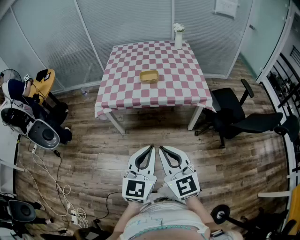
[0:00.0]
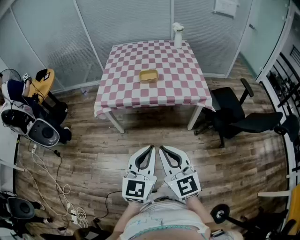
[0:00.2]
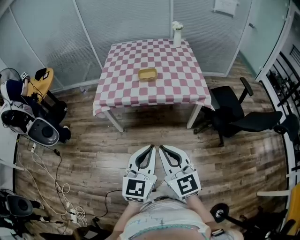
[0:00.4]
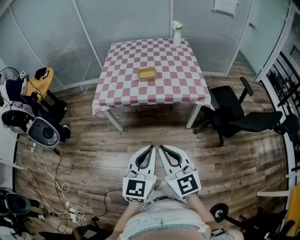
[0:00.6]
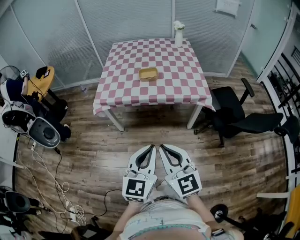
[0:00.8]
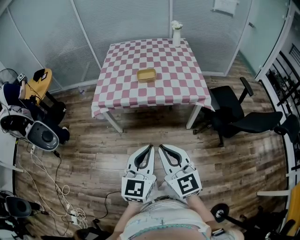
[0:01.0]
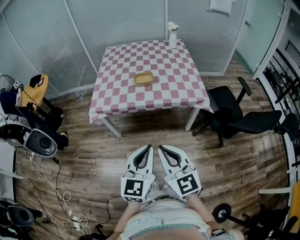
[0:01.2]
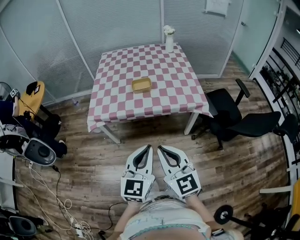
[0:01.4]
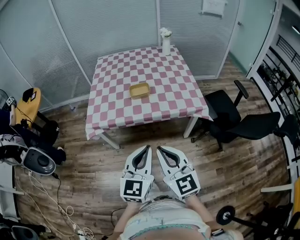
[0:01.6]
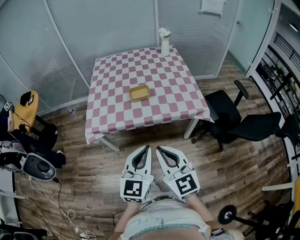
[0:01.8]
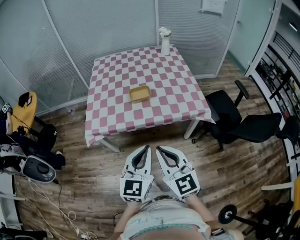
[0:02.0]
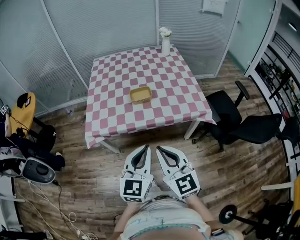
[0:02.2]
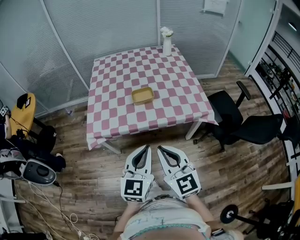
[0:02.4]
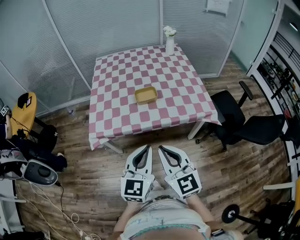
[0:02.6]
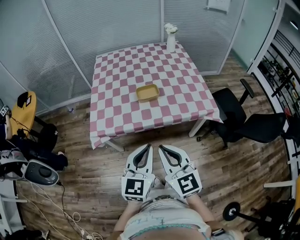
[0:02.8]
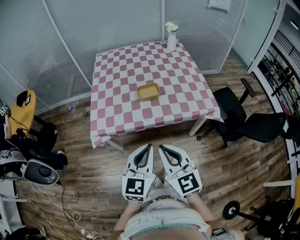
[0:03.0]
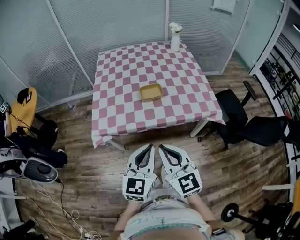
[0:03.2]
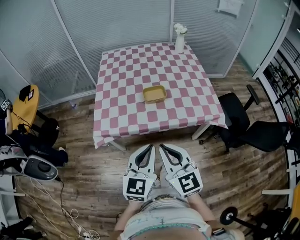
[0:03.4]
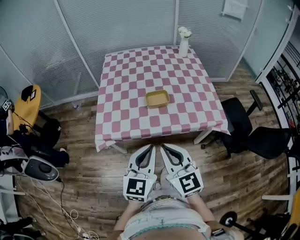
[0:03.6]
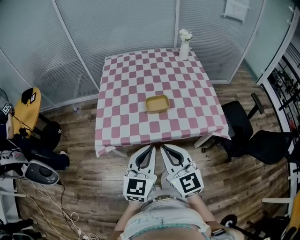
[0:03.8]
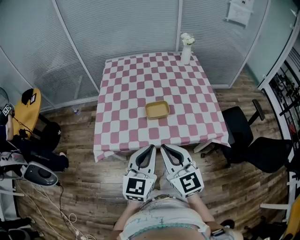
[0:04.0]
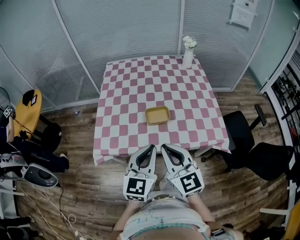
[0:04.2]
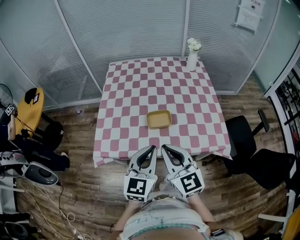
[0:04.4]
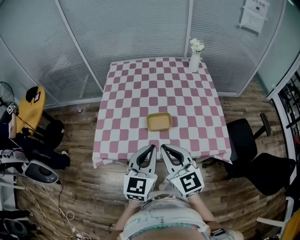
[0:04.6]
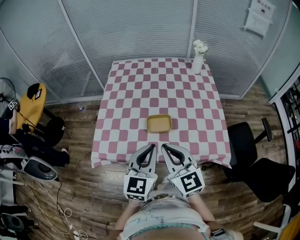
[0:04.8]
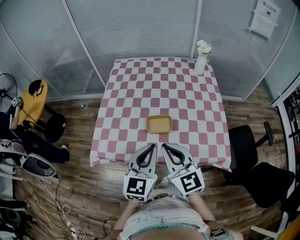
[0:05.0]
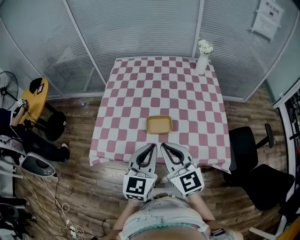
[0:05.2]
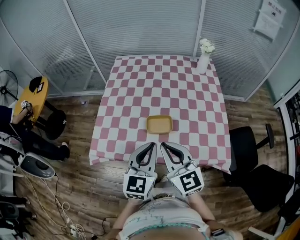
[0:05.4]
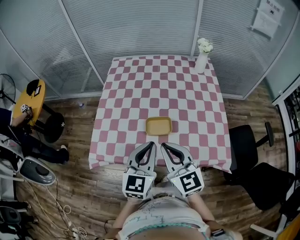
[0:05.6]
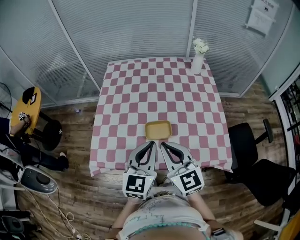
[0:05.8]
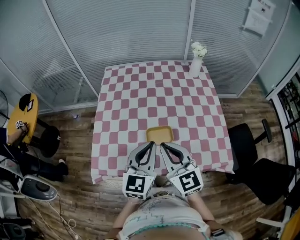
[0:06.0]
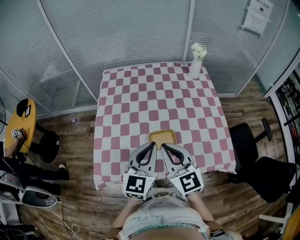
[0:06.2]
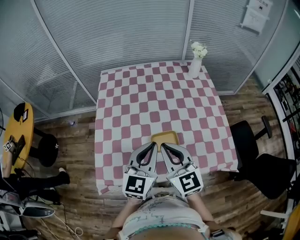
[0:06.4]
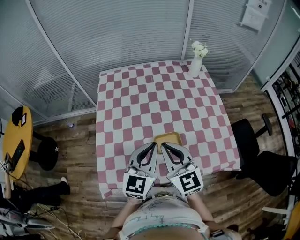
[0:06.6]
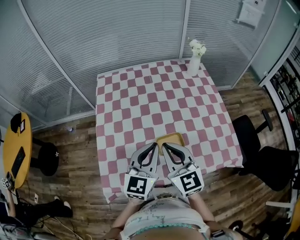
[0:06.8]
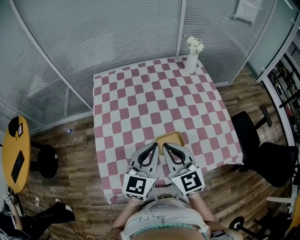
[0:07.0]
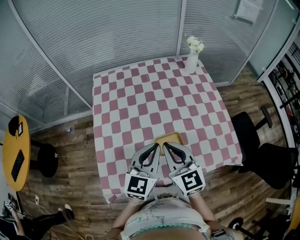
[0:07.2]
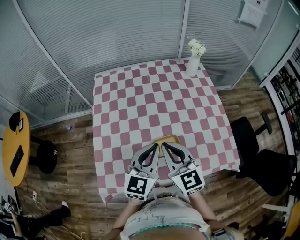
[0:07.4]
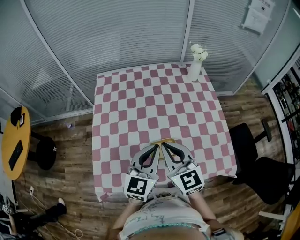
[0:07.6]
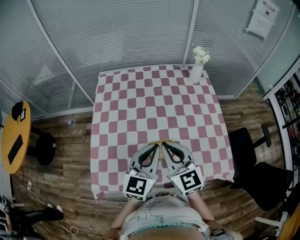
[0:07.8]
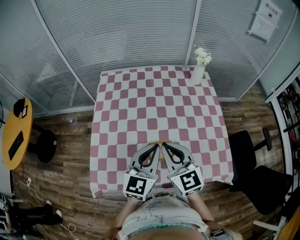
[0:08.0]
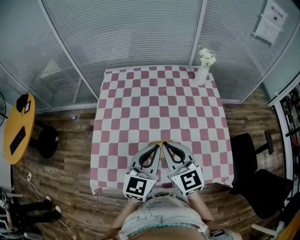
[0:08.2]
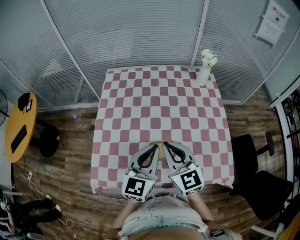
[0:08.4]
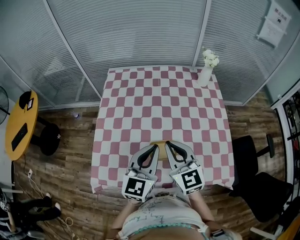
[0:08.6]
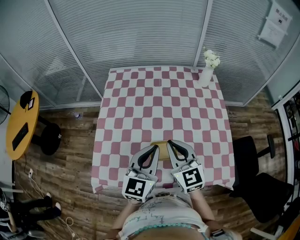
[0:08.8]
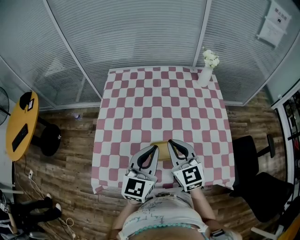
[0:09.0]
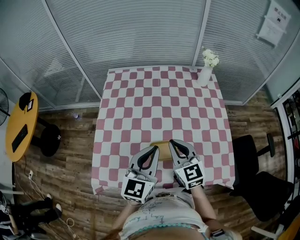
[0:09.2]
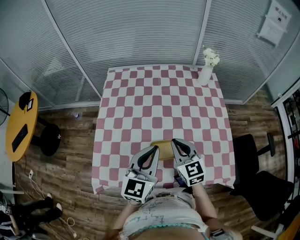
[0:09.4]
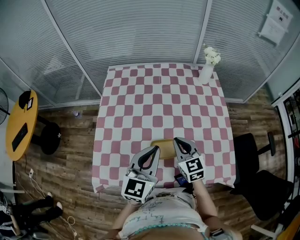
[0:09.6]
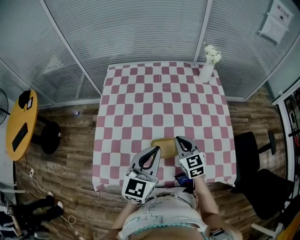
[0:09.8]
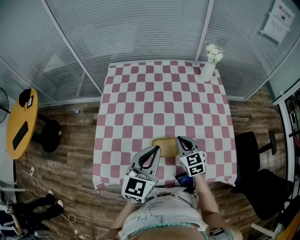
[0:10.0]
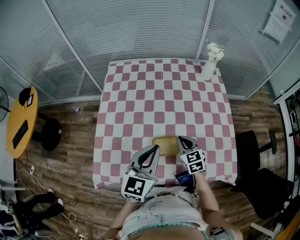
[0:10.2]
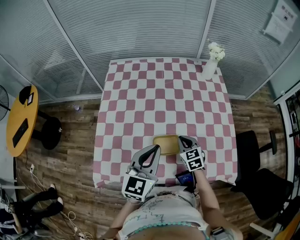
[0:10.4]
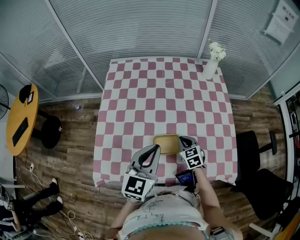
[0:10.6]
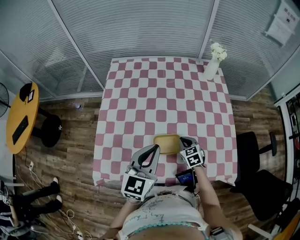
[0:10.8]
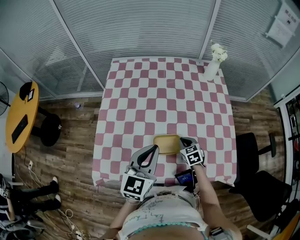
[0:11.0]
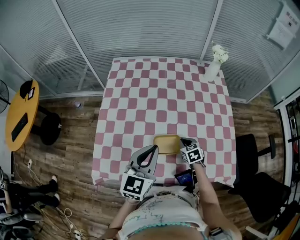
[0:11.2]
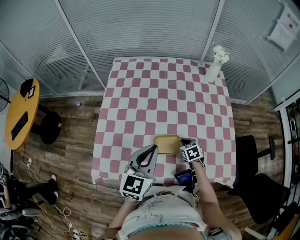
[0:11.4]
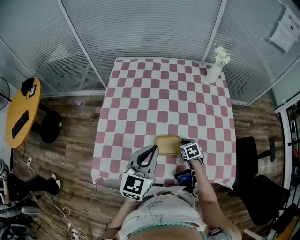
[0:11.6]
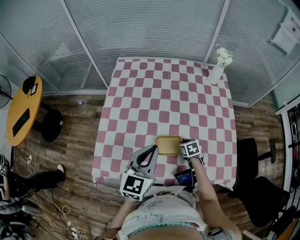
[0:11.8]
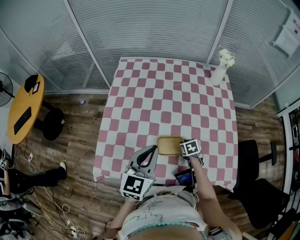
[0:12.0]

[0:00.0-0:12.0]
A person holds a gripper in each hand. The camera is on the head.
0.0 to 1.6 s: The two grippers go roughly 15 cm forward.
1.6 to 3.0 s: Both grippers move forward and to the left, approximately 15 cm.
3.0 to 4.4 s: The two grippers go roughly 20 cm forward.
4.4 to 6.0 s: Both grippers travel together forward, about 15 cm.
6.0 to 7.6 s: Both grippers travel together forward, approximately 10 cm.
7.6 to 9.0 s: The right gripper shifts by some 5 cm.
9.0 to 10.4 s: The right gripper goes about 20 cm downward, and swivels about 20 degrees.
10.4 to 12.0 s: The right gripper goes about 10 cm downward, and turns by some 30 degrees.

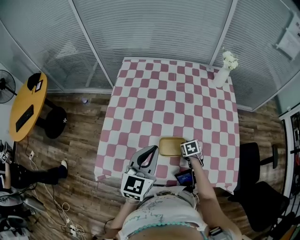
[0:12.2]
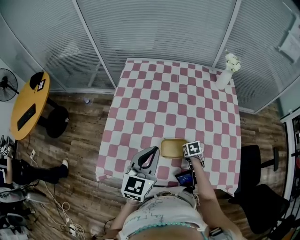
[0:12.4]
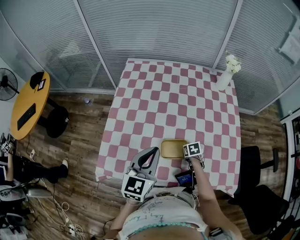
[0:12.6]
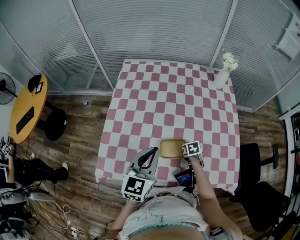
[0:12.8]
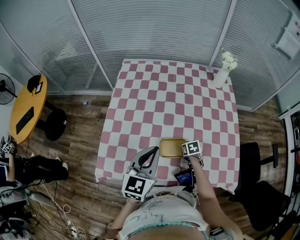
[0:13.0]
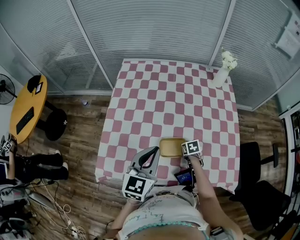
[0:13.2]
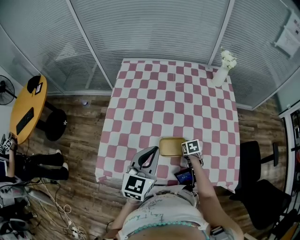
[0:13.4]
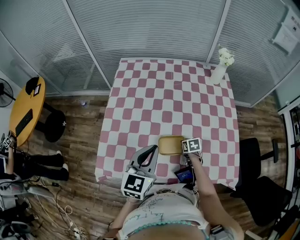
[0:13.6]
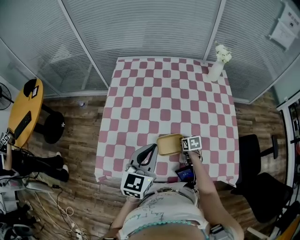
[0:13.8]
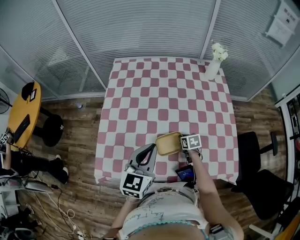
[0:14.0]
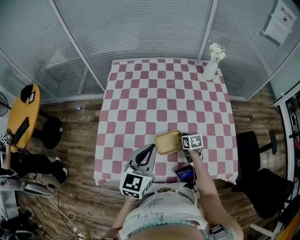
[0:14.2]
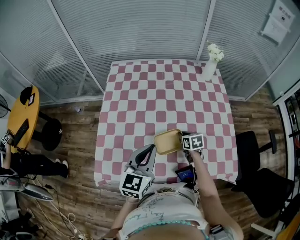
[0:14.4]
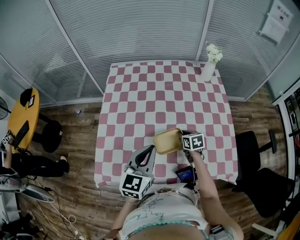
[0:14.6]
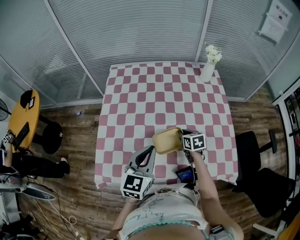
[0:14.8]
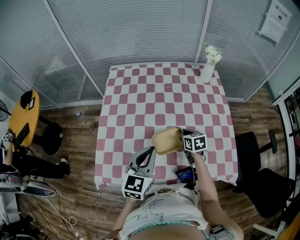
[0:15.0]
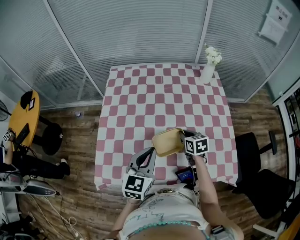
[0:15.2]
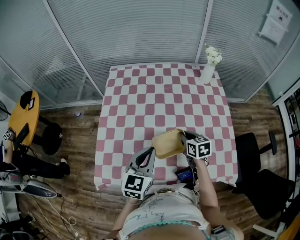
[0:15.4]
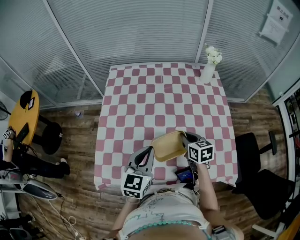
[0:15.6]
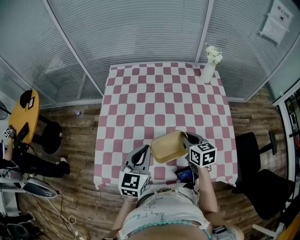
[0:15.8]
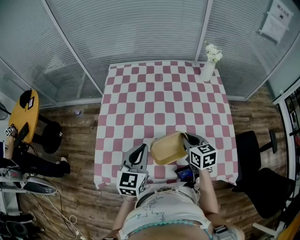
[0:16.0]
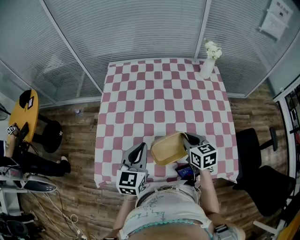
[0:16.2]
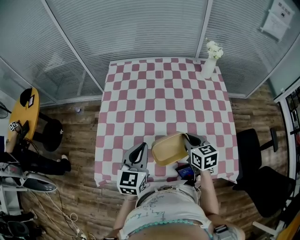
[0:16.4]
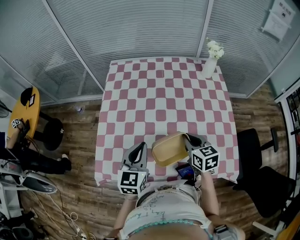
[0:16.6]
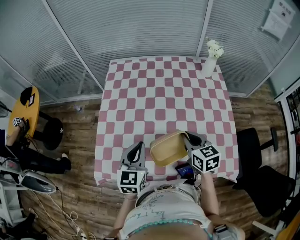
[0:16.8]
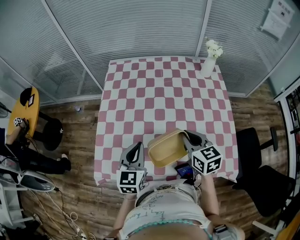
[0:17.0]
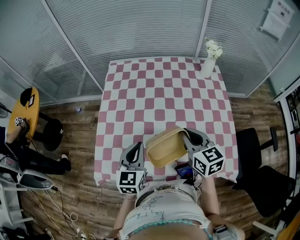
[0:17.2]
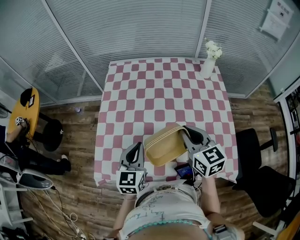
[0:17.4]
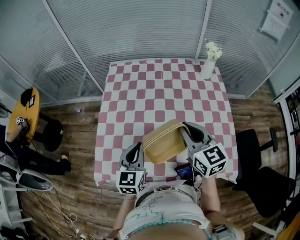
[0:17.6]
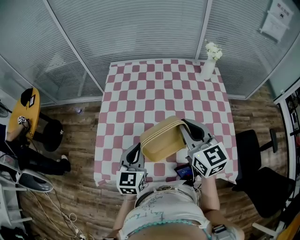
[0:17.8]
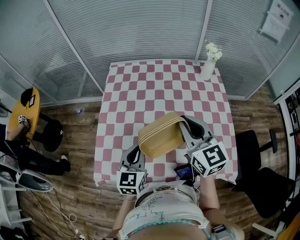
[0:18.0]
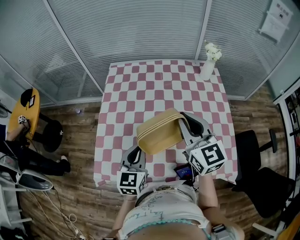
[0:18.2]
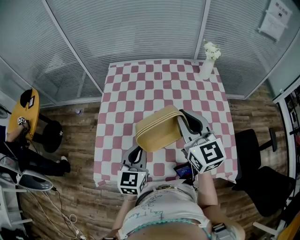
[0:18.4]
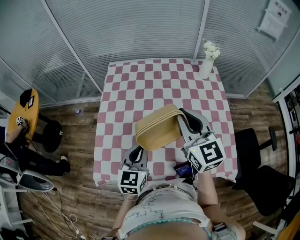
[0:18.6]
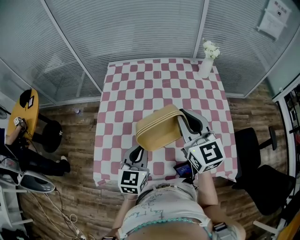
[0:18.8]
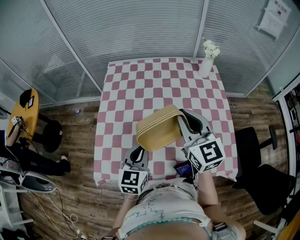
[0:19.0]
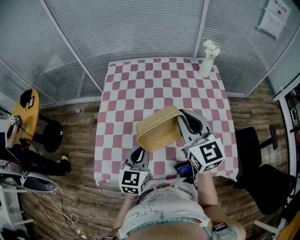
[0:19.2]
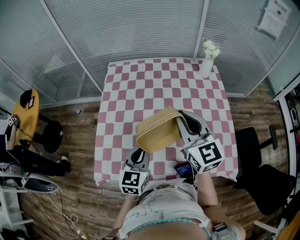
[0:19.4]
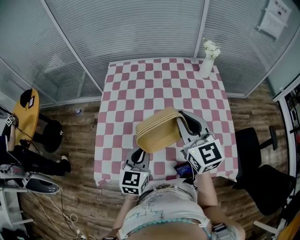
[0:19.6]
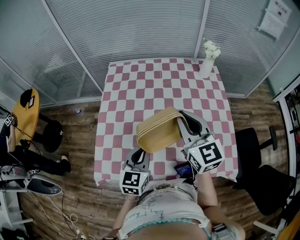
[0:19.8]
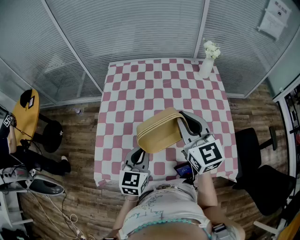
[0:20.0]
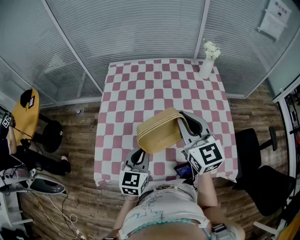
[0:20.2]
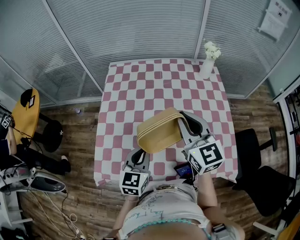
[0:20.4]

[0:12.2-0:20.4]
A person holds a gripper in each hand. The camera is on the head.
12.2 to 13.8 s: The grippers stay close to where they were, moving slightly.
13.8 to 15.4 s: The right gripper is displaced upward by some 15 cm, and turns by approximately 20 degrees.
15.4 to 17.2 s: The right gripper shifts approximately 15 cm upward.
17.2 to 18.8 s: The right gripper goes about 10 cm upward, and rotates about 20 degrees.
18.8 to 20.4 s: Neither gripper changes place.

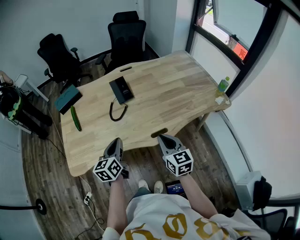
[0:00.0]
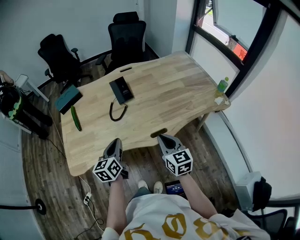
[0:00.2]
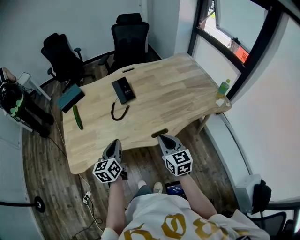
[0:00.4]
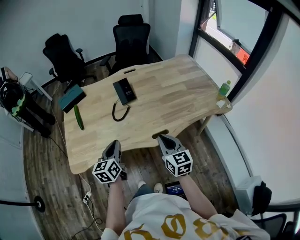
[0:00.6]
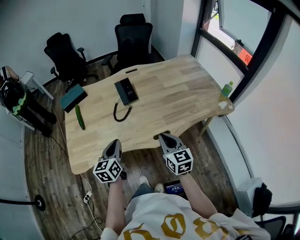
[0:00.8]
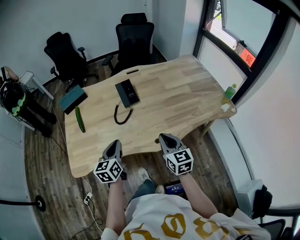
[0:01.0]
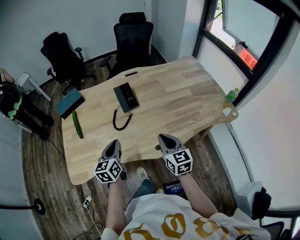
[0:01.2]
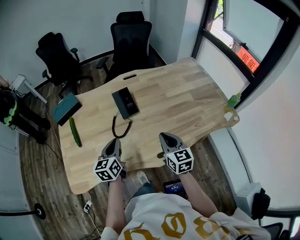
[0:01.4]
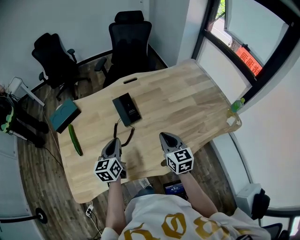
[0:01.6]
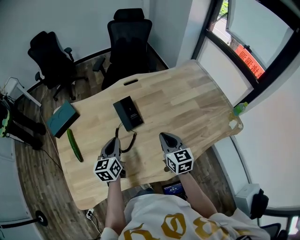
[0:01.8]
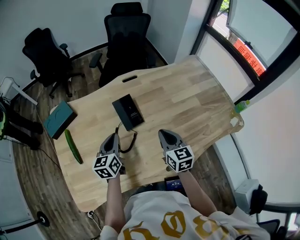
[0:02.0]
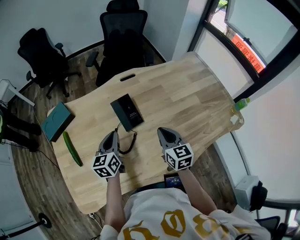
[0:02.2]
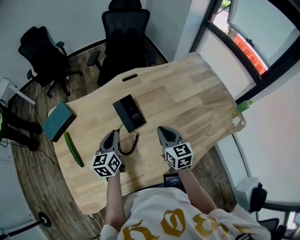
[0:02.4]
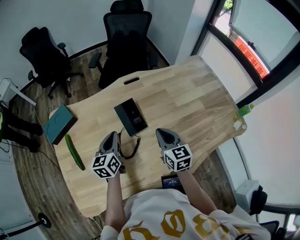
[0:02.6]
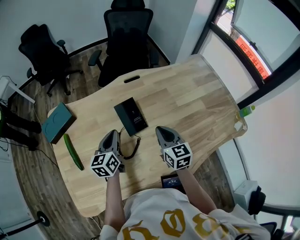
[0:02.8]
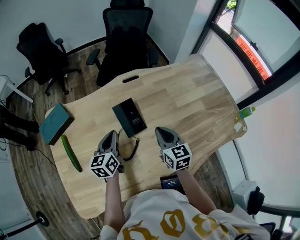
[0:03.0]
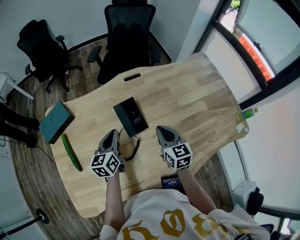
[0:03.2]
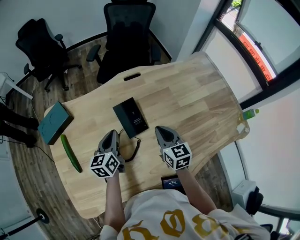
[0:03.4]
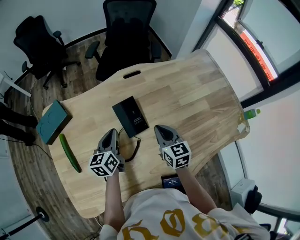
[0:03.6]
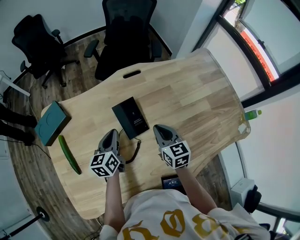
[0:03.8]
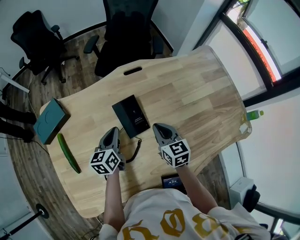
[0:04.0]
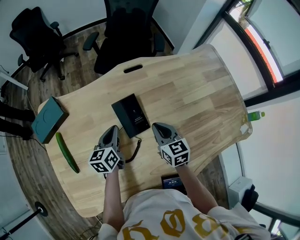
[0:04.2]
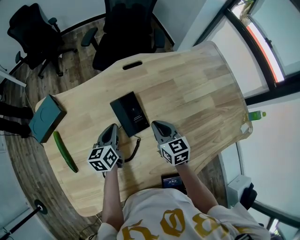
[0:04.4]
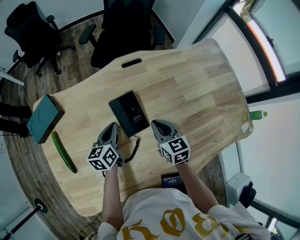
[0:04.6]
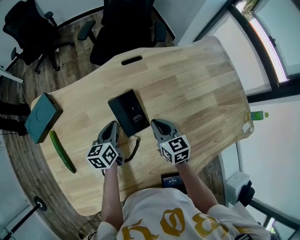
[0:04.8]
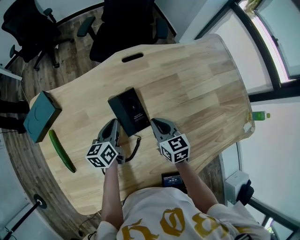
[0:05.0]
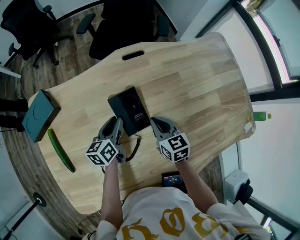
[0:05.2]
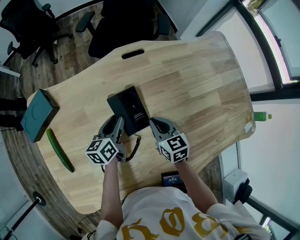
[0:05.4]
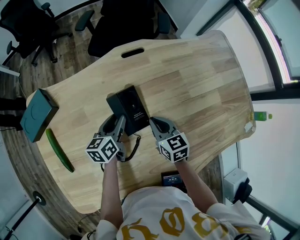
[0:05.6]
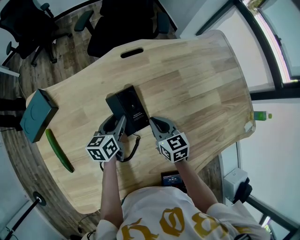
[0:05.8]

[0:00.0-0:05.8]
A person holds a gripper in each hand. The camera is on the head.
0.0 to 1.4 s: Both grippers travel together forward, roughly 10 cm.
1.4 to 2.8 s: Both grippers travel together forward, some 15 cm.
2.8 to 4.4 s: The right gripper shifts some 10 cm downward and forward. The left gripper moves downward, roughly 10 cm.
4.4 to 5.8 s: The left gripper ends up approximately 5 cm from where it was, and opens.
